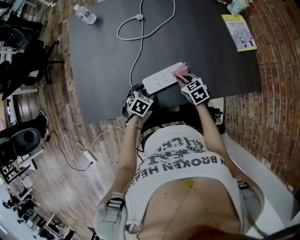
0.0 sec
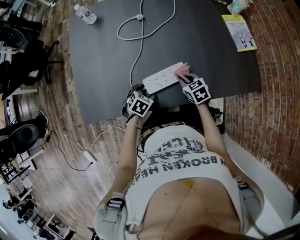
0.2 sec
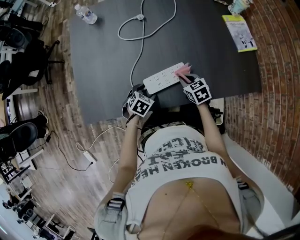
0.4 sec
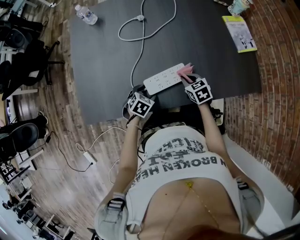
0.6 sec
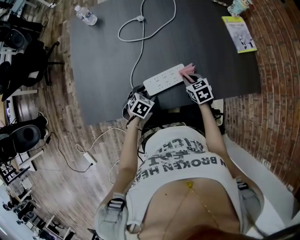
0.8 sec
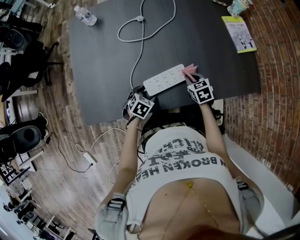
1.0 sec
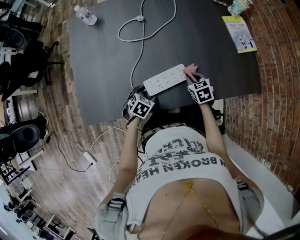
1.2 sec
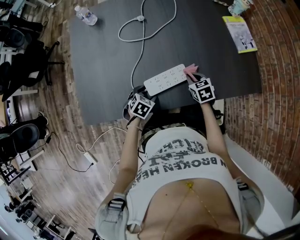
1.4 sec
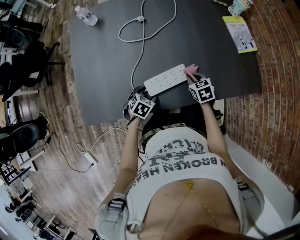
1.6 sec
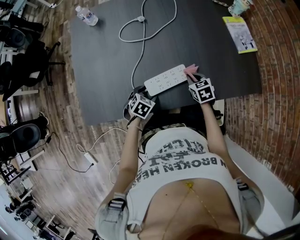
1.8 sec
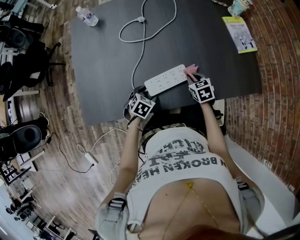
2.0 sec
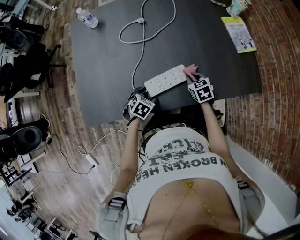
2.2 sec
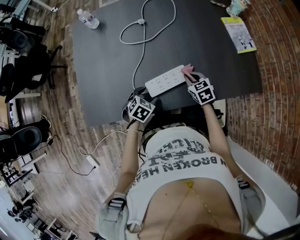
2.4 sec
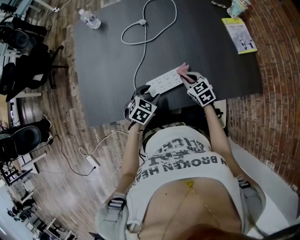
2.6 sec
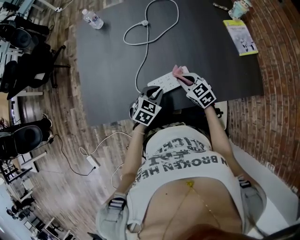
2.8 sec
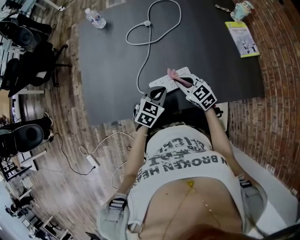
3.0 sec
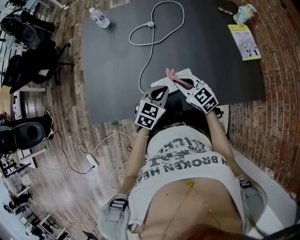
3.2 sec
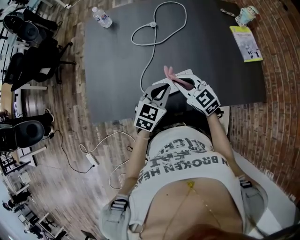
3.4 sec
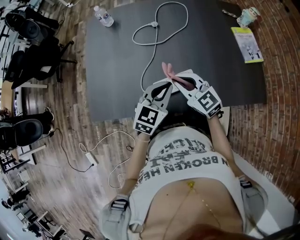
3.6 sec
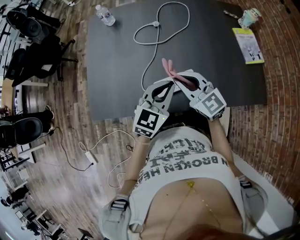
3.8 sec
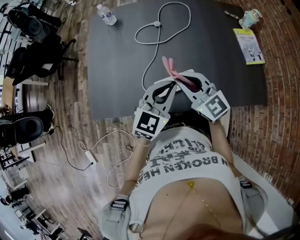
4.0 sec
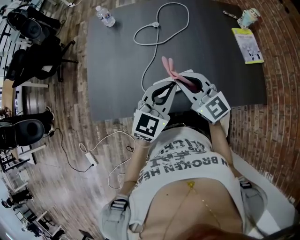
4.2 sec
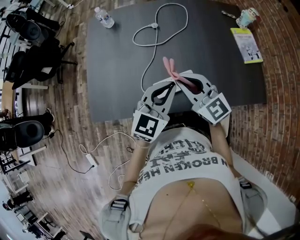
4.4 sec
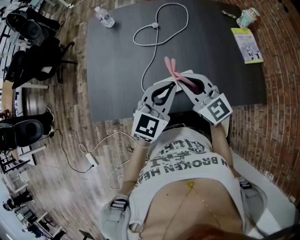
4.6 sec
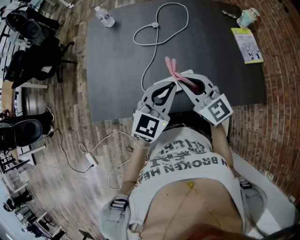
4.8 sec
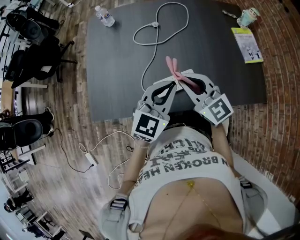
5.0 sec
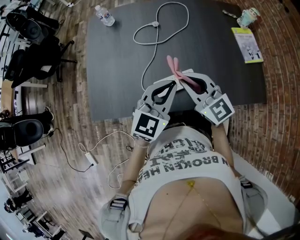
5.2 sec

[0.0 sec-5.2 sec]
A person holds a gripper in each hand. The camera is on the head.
0.0 sec to 1.8 sec: The right gripper shifts by roughly 5 cm.
1.8 sec to 3.4 sec: The right gripper goes about 20 cm upward and to the left, and angles its fingers upward, by approximately 30 degrees. Meanwhile the left gripper is displaced upward by about 20 cm, angles its fingers upward, by some 30 degrees, and closes its fingers.
3.4 sec to 5.2 sec: The grippers both shift upward by roughly 10 cm.

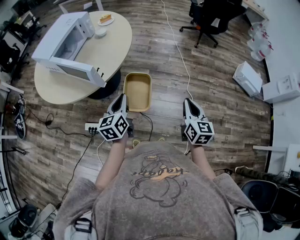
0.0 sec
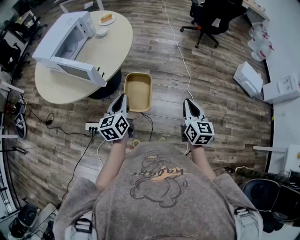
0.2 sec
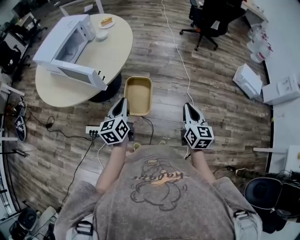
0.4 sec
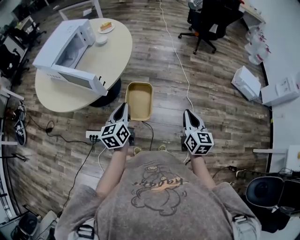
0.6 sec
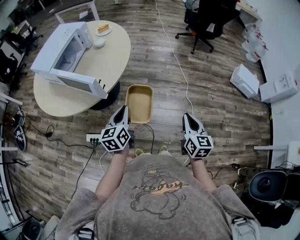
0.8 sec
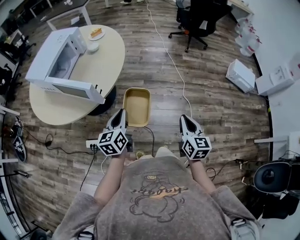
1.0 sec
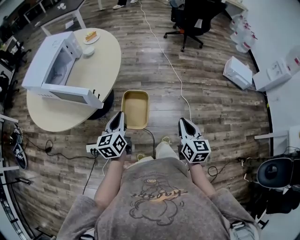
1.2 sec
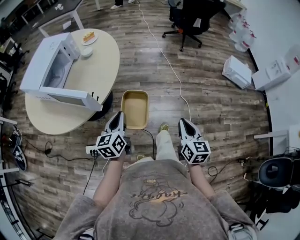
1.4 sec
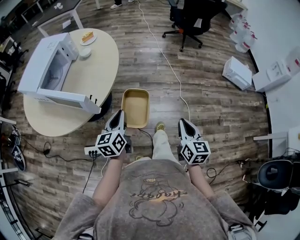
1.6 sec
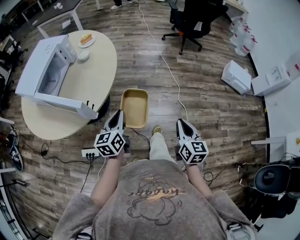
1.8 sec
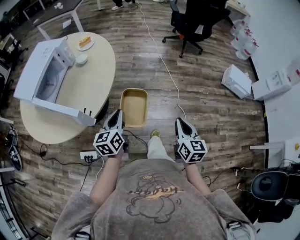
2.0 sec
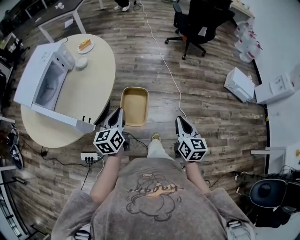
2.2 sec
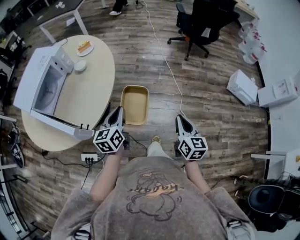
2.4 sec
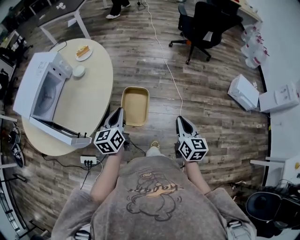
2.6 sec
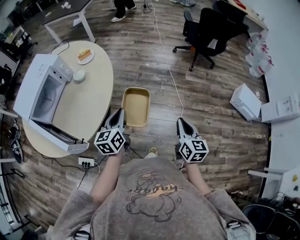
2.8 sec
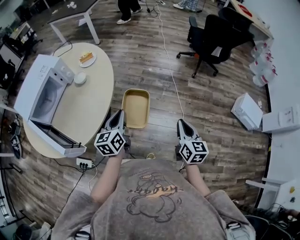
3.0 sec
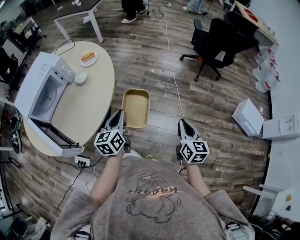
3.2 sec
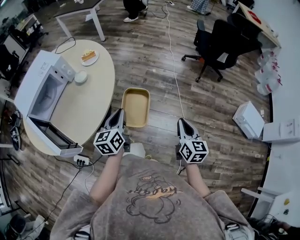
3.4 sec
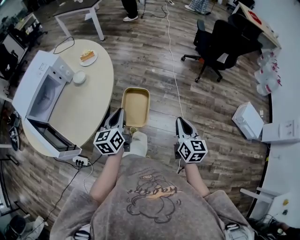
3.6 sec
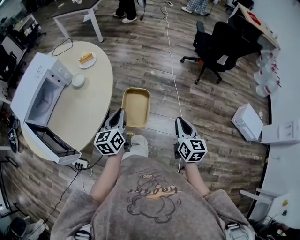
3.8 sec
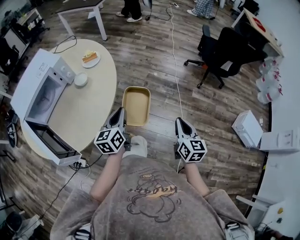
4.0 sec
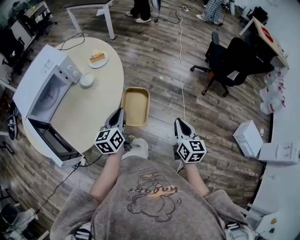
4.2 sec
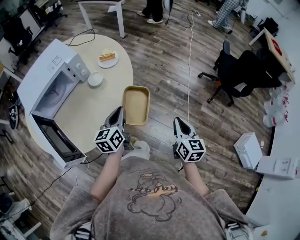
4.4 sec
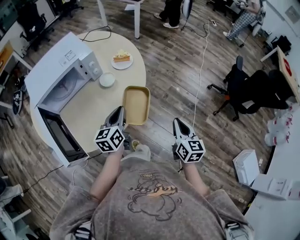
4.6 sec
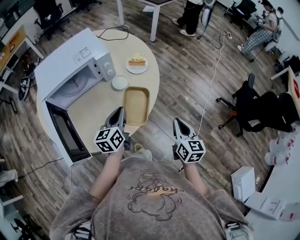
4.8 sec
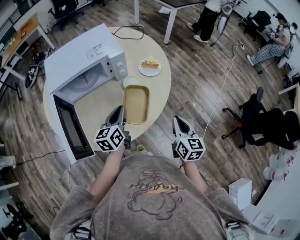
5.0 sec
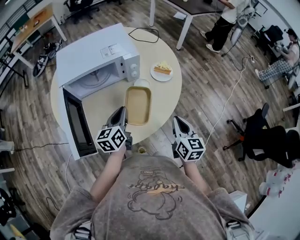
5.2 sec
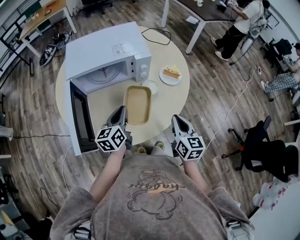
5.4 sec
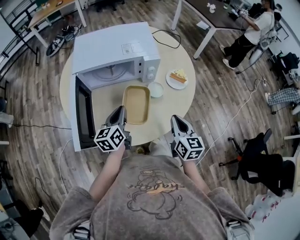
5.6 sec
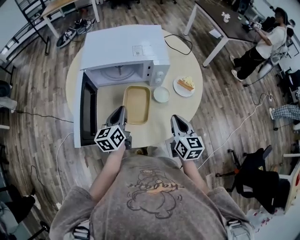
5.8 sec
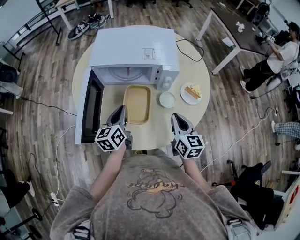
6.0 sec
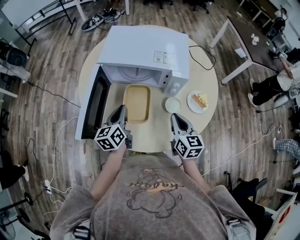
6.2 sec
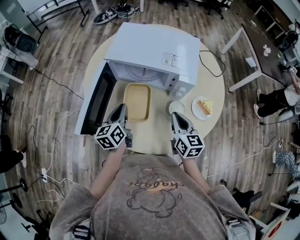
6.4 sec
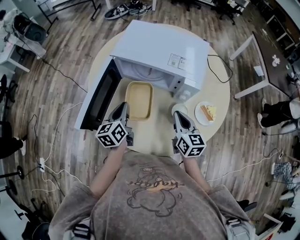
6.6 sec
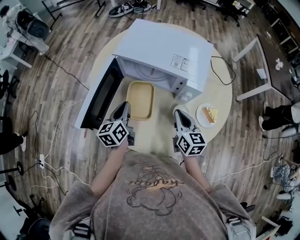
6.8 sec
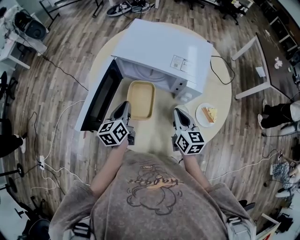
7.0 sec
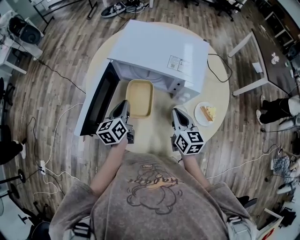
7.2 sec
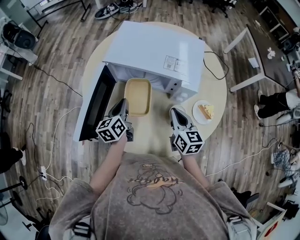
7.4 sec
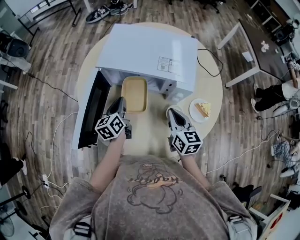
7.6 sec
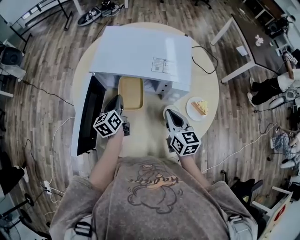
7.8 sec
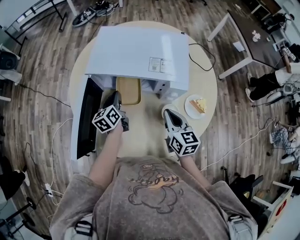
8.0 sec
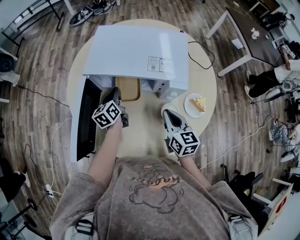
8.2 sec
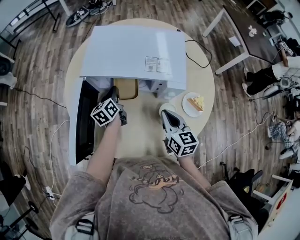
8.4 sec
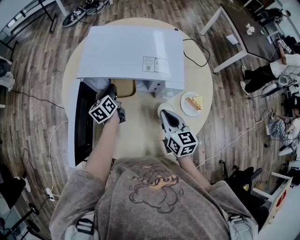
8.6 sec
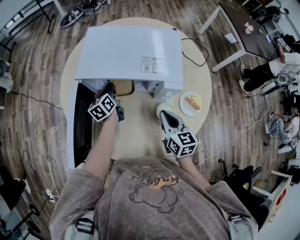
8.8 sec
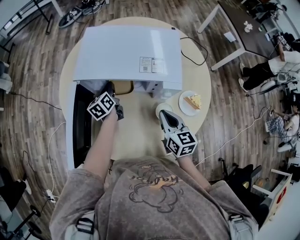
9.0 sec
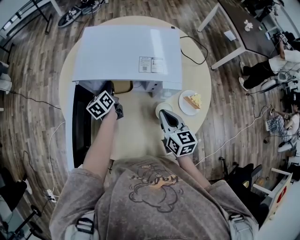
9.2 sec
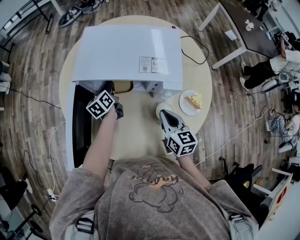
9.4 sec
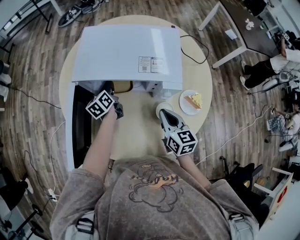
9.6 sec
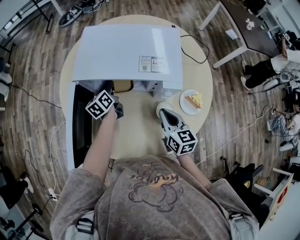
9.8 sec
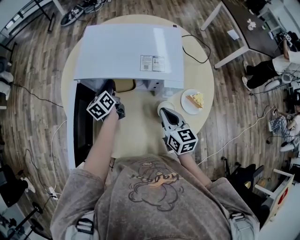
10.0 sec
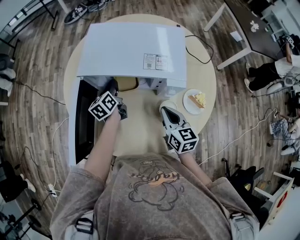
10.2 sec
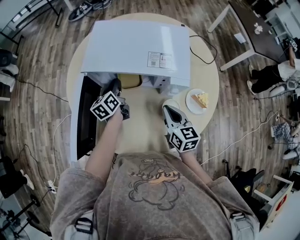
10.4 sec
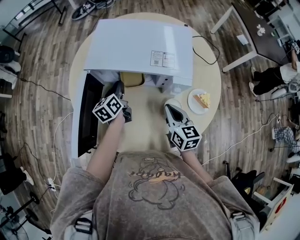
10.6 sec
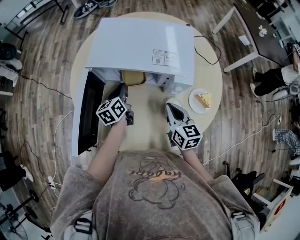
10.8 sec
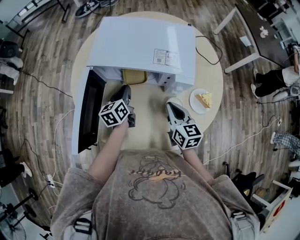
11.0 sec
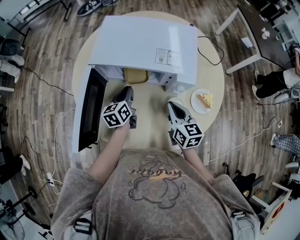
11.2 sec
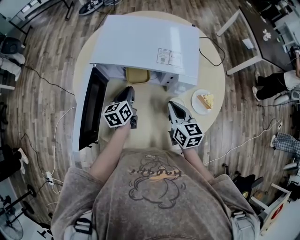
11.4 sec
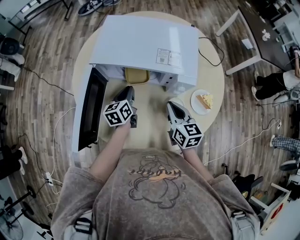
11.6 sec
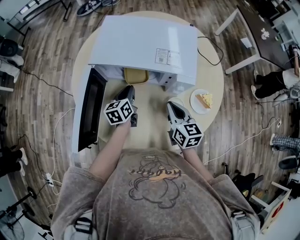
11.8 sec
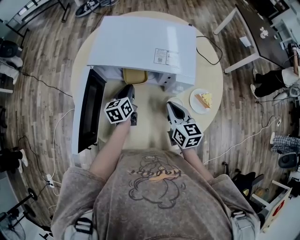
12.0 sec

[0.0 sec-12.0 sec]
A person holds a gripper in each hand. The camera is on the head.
0.0 sec to 1.6 sec: The left gripper heads forward, covering approximately 5 cm.
1.6 sec to 3.0 sec: The two grippers go about 30 cm forward.
3.0 sec to 4.4 sec: Both grippers travel together forward and to the left, approximately 20 cm.
4.4 sec to 6.0 sec: The left gripper ends up roughly 30 cm from where it was, and rotates some 50 degrees, while the right gripper ends up about 40 cm from where it was, and changes its angle by roughly 60 degrees.
6.0 sec to 7.6 sec: Both grippers travel together forward, about 10 cm.
7.6 sec to 9.0 sec: The left gripper goes roughly 15 cm forward and downward.
9.0 sec to 10.4 sec: The grippers make only small movements.
10.4 sec to 12.0 sec: The left gripper is displaced backward by roughly 5 cm.

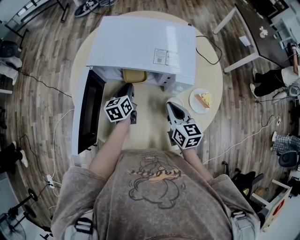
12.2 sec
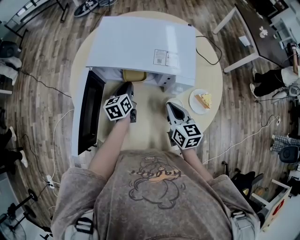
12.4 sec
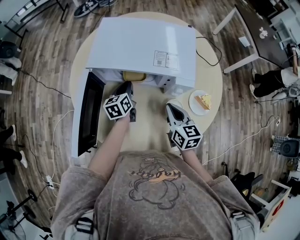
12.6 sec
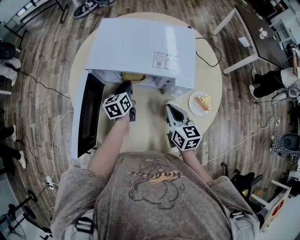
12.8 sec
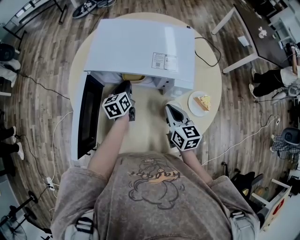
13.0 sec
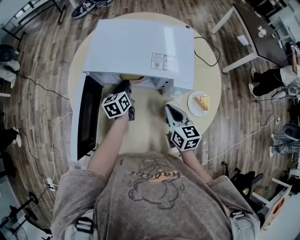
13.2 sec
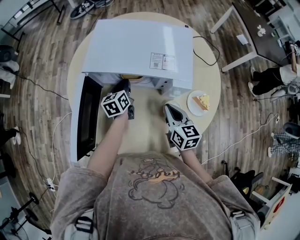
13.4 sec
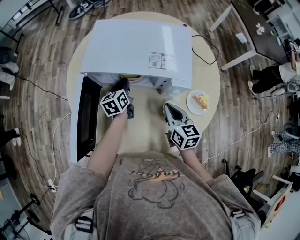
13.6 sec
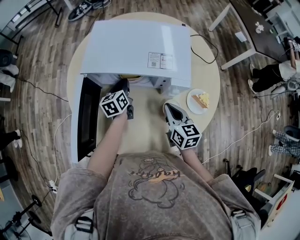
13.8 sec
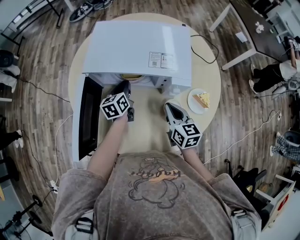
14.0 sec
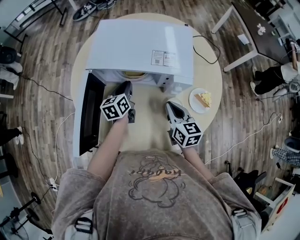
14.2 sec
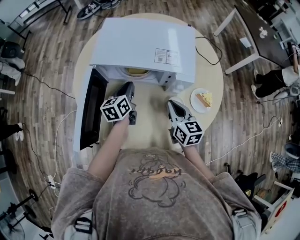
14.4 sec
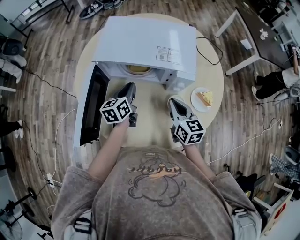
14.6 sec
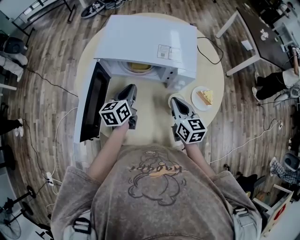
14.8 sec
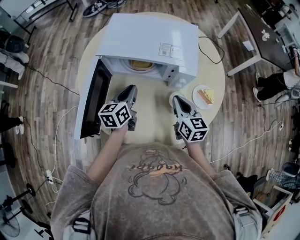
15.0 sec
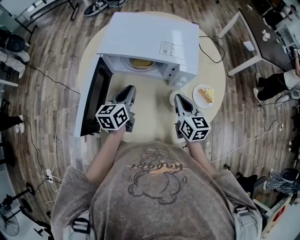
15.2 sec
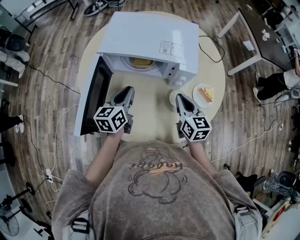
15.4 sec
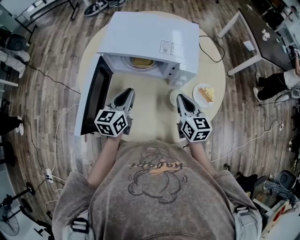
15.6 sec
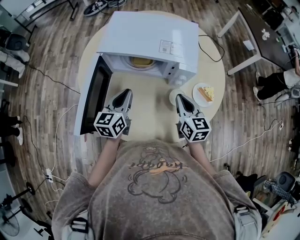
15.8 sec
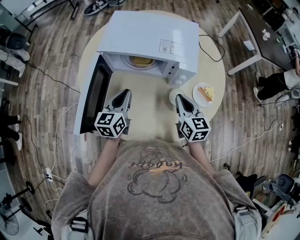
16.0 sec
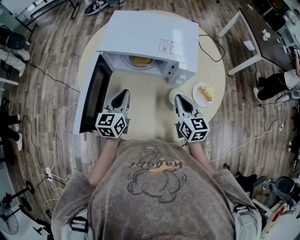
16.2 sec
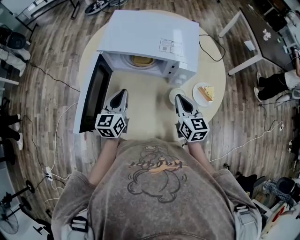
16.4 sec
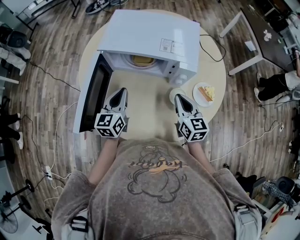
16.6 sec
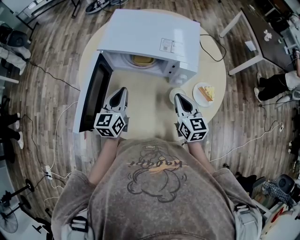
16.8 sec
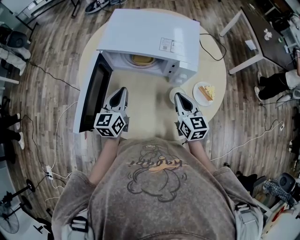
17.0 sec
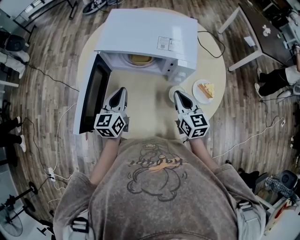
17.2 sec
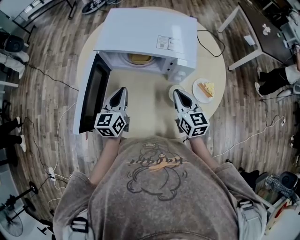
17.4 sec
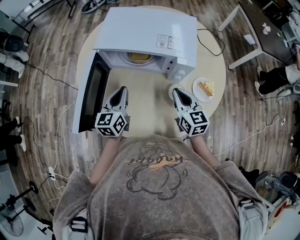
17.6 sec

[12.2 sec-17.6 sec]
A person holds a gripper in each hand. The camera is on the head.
12.2 sec to 13.6 sec: The grippers make only small movements.
13.6 sec to 15.0 sec: The left gripper moves backward and upward, approximately 15 cm.
15.0 sec to 16.2 sec: The left gripper ends up some 5 cm from where it was.
16.2 sec to 17.6 sec: The grippers move only a little.

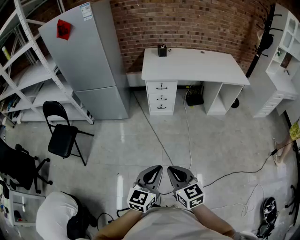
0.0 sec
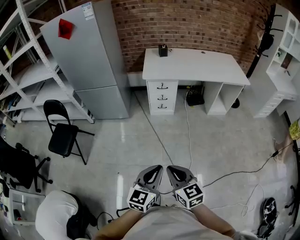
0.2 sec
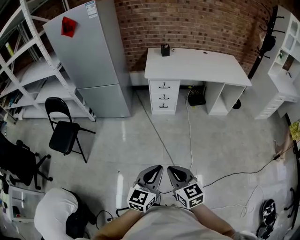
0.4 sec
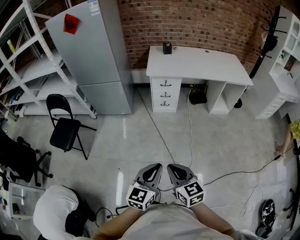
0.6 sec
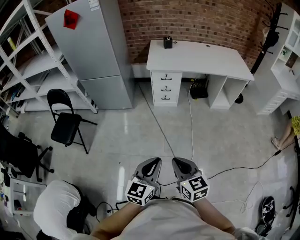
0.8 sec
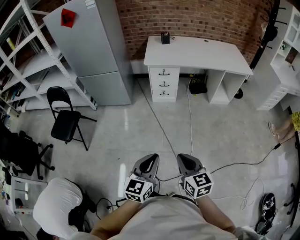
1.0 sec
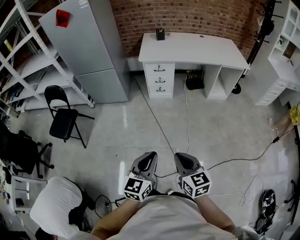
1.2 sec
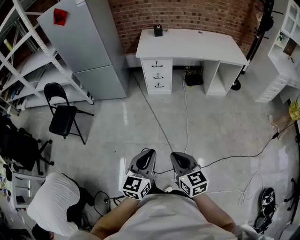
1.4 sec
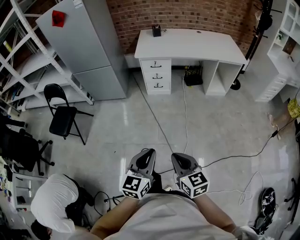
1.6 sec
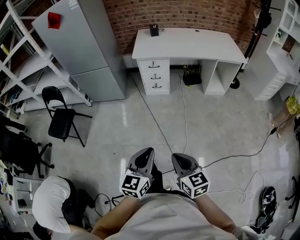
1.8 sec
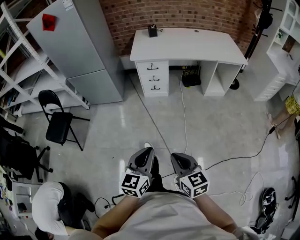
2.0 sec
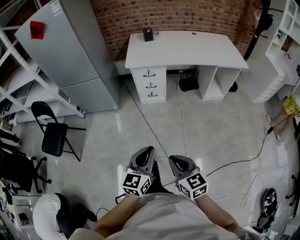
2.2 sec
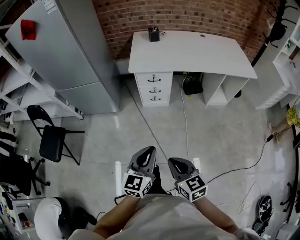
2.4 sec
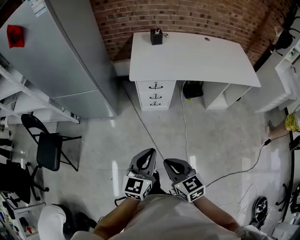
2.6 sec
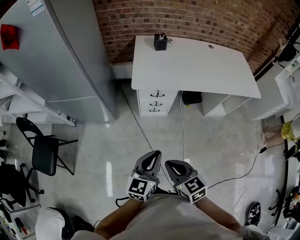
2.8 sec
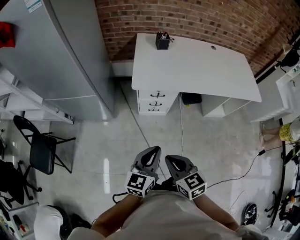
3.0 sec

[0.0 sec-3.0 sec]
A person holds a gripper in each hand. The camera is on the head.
0.0 sec to 1.6 sec: The right gripper moves to the right and backward, roughly 15 cm, while the left gripper shifts roughly 10 cm backward and to the right.
1.6 sec to 3.0 sec: The two grippers travel together, forward, about 50 cm.
